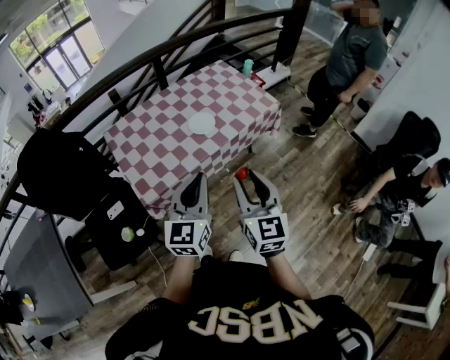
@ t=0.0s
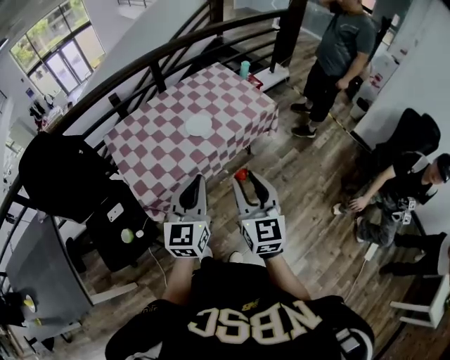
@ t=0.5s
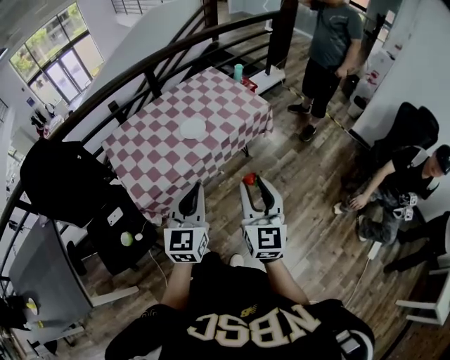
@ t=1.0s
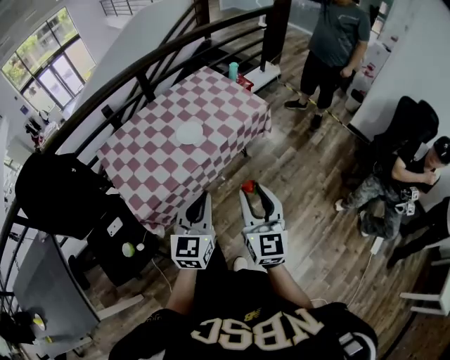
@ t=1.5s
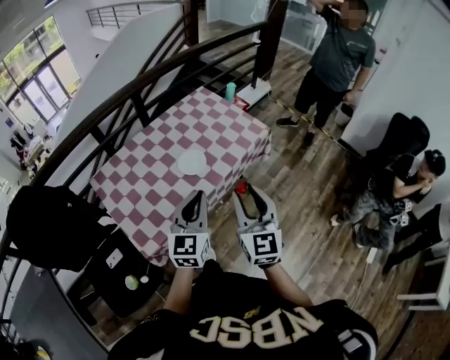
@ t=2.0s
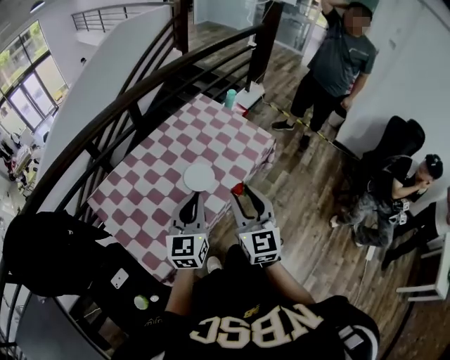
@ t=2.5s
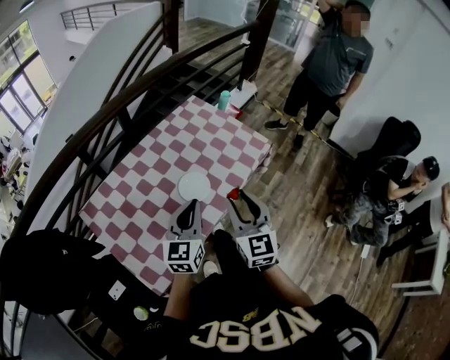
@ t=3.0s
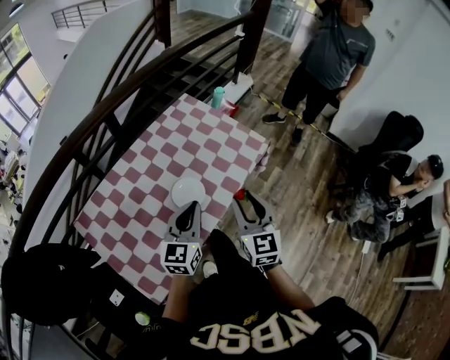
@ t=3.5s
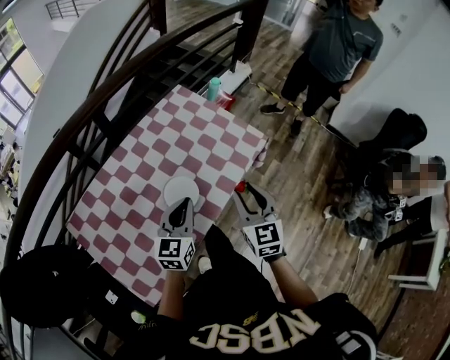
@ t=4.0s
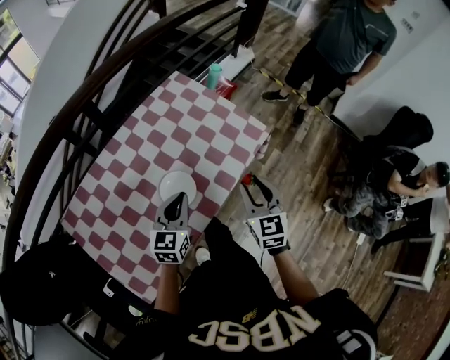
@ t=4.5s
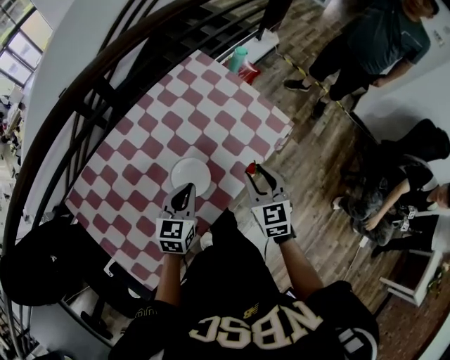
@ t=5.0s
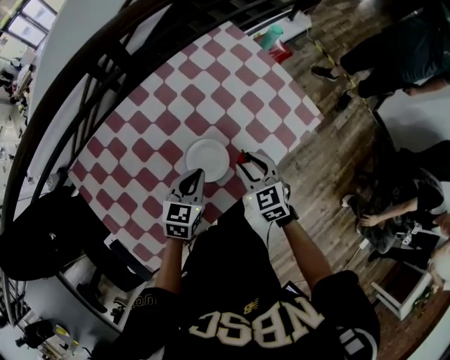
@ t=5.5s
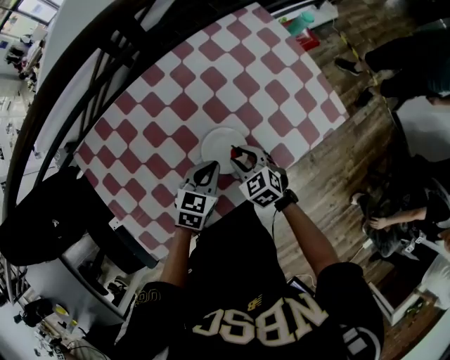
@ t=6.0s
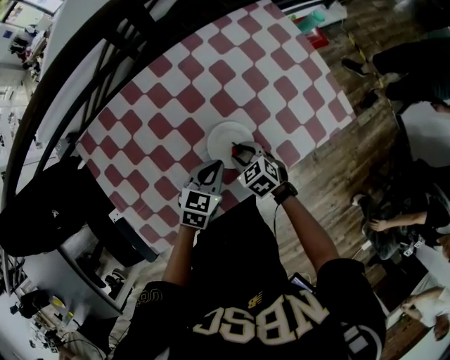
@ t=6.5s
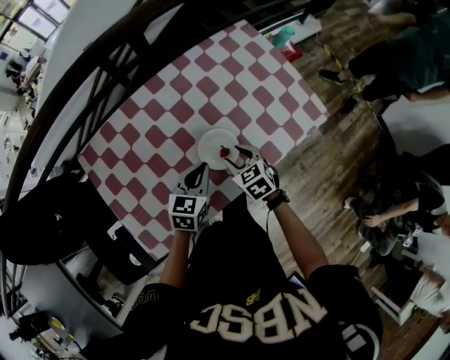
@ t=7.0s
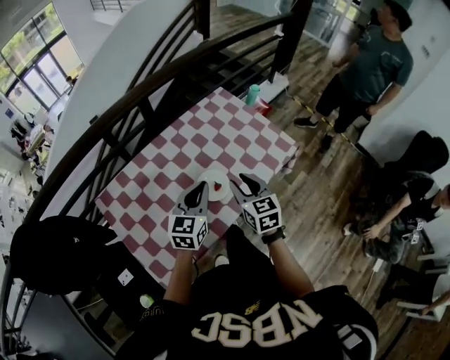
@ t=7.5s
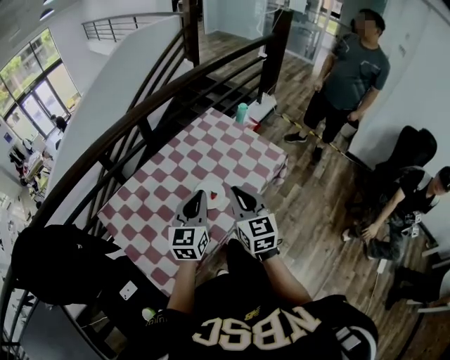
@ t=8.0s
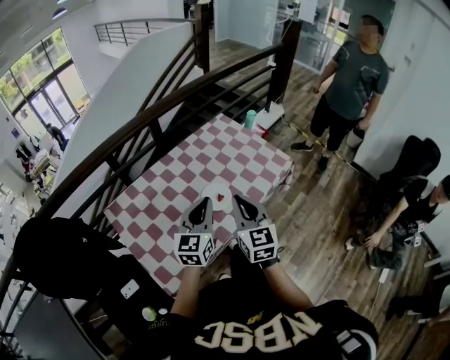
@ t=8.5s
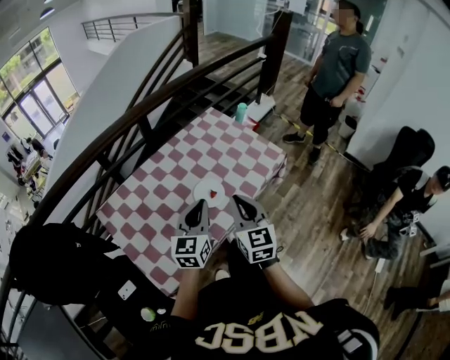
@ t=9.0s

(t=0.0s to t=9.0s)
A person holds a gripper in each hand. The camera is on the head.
t=0.0s - t=2.0s: The two grippers go some 15 cm forward.
t=2.0s - t=4.5s: The two grippers go about 30 cm forward and downward. The right gripper rotates some 20 degrees.
t=4.5s - t=7.0s: The left gripper shifts some 10 cm downward, while the right gripper is displaced downward by about 20 cm, and changes its angle by some 40 degrees.
t=7.0s - t=9.0s: The grippers both shift upward and backward by approximately 25 cm. The left gripper changes its angle by roughly 30 degrees. Meanwhile the right gripper tips its fingers upward by approximately 40 degrees, and closes.

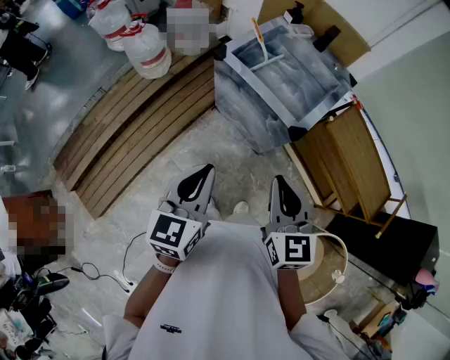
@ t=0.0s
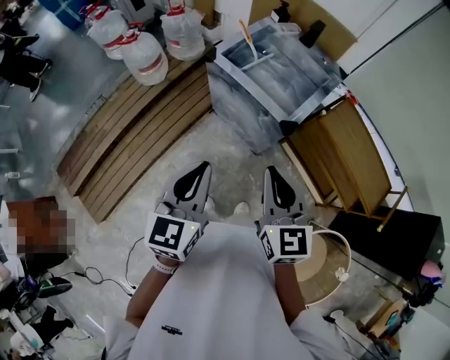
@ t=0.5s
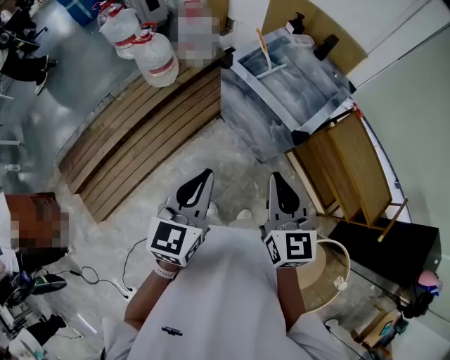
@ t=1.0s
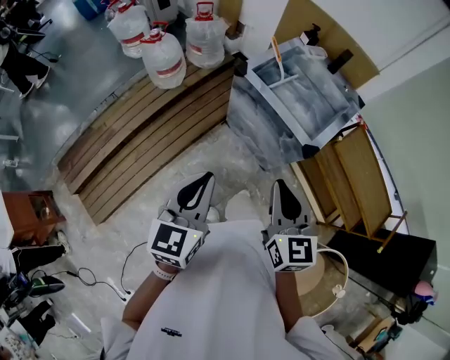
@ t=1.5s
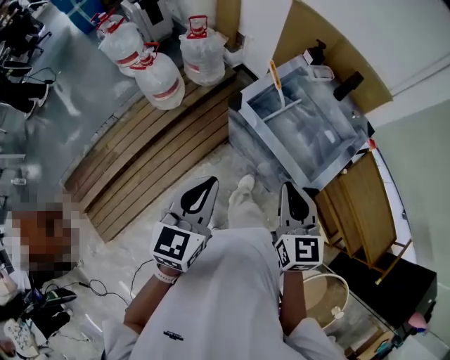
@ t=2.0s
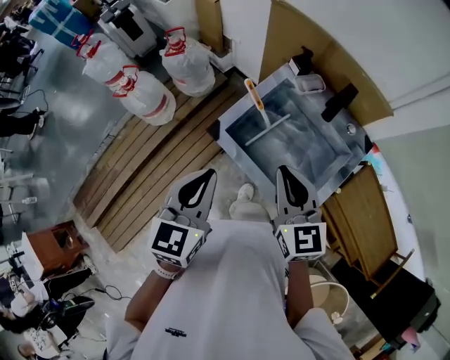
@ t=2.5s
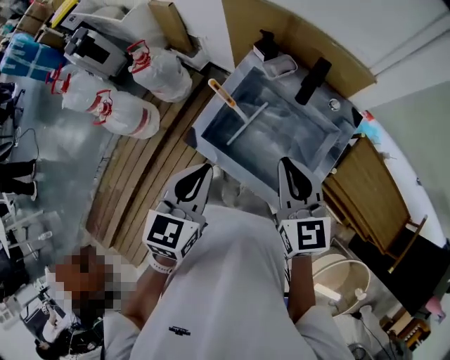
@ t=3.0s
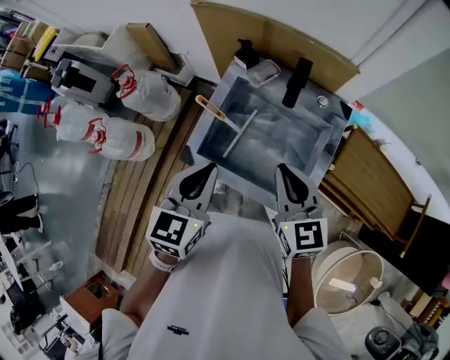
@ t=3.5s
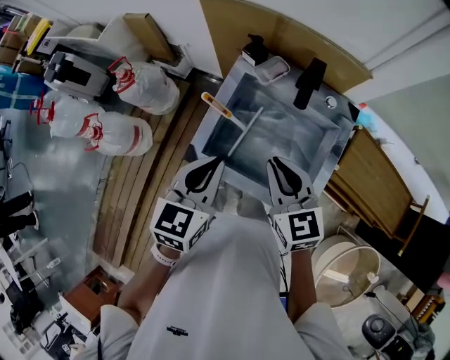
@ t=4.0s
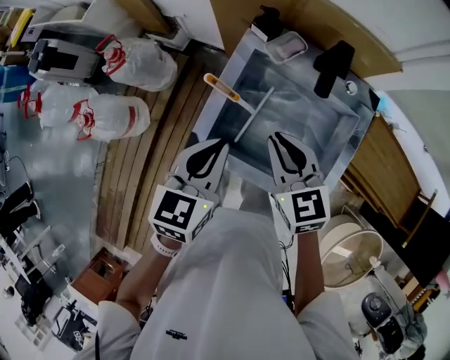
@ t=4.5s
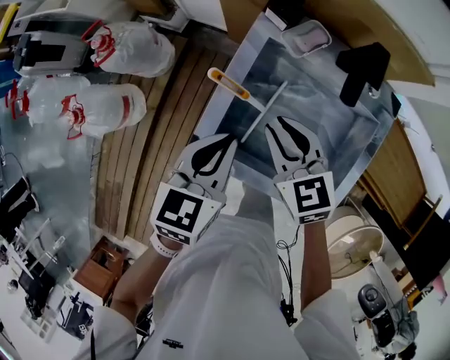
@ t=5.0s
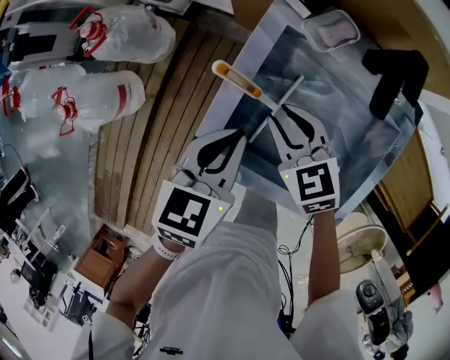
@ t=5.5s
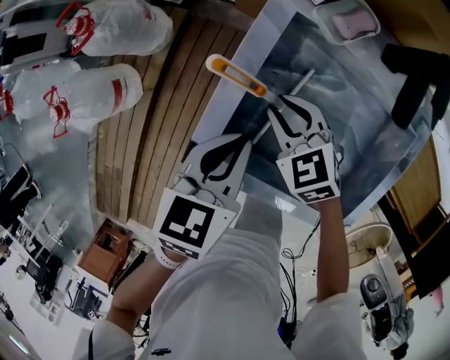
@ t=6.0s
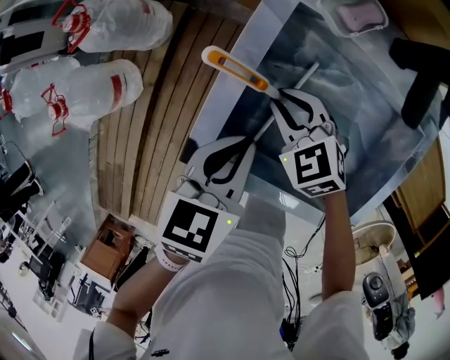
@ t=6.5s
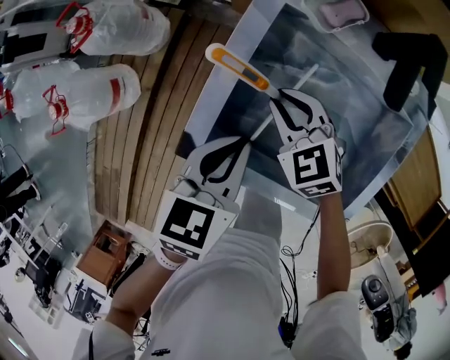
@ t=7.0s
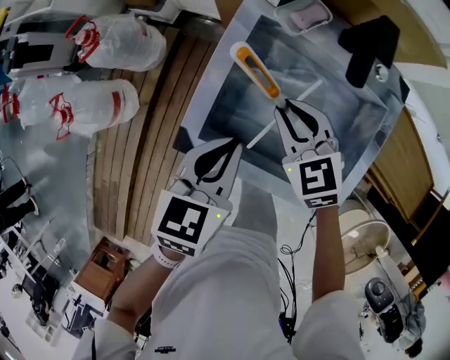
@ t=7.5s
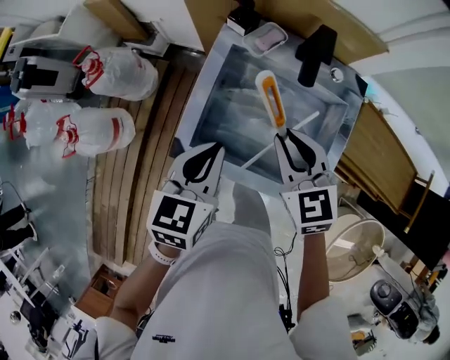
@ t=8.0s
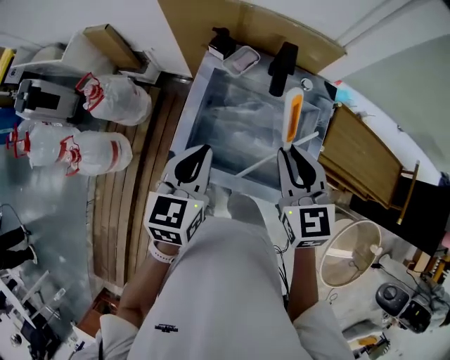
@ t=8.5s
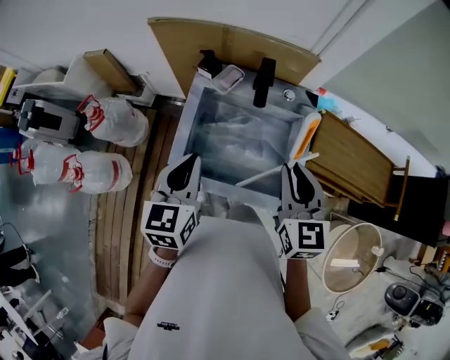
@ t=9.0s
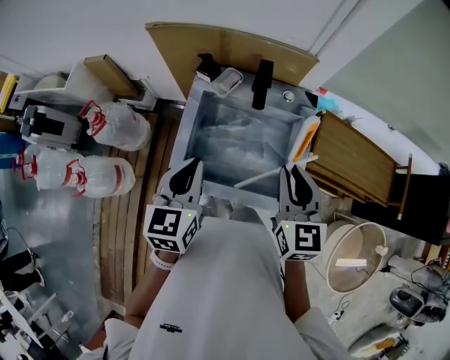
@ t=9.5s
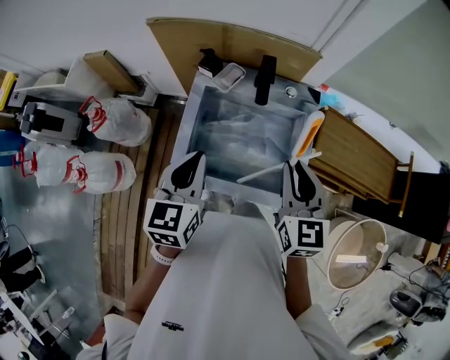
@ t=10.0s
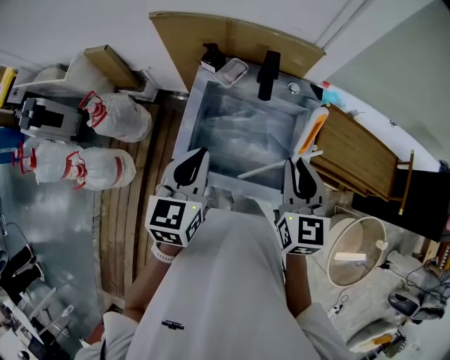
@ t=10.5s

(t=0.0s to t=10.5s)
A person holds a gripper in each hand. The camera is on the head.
t=0.0s - t=2.0s: Both grippers move forward, approximately 20 cm.
t=2.0s - t=4.0s: Both grippers travel together forward, about 30 cm. The left gripper changes its angle by about 30 degrees.
t=4.0s - t=6.5s: The right gripper travels downward and forward by approximately 30 cm, and swivels approximately 30 degrees. Meanwhile the left gripper travels downward by roughly 20 cm, and swivels roughly 20 degrees.
t=6.5s - t=8.5s: The left gripper travels upward by approximately 20 cm, and turns by approximately 20 degrees. Meanwhile the right gripper goes about 35 cm upward and to the right, and turns by roughly 40 degrees.
t=8.5s - t=10.5s: The right gripper moves about 5 cm.

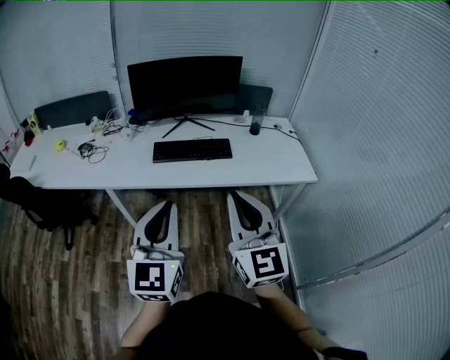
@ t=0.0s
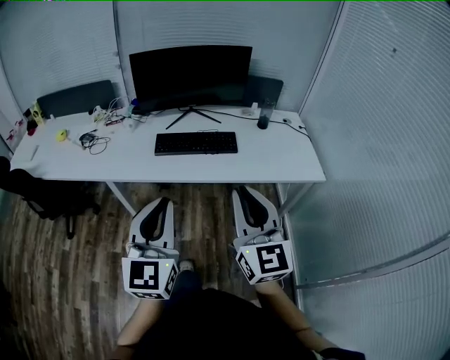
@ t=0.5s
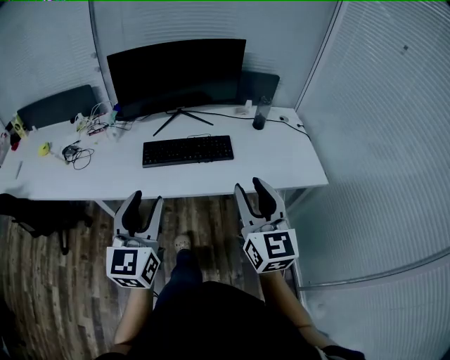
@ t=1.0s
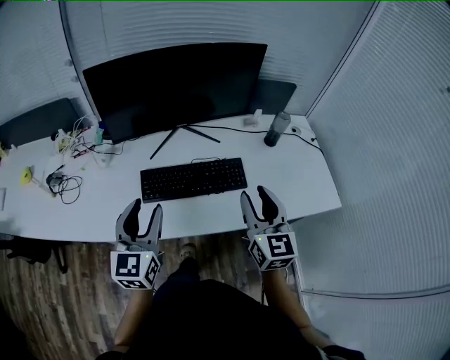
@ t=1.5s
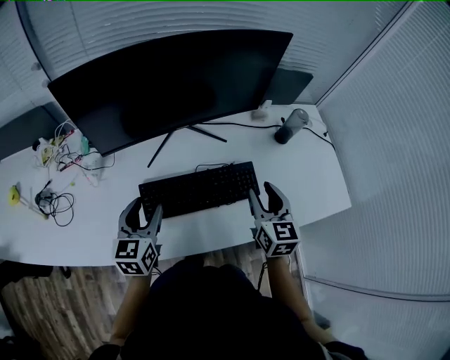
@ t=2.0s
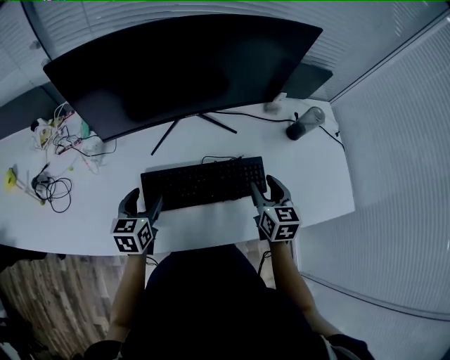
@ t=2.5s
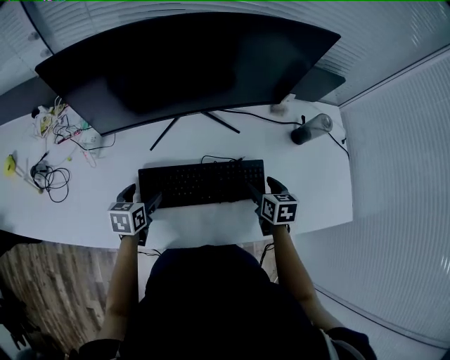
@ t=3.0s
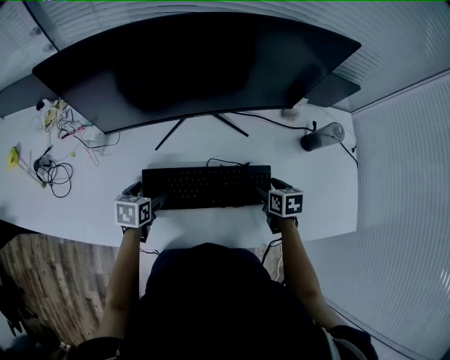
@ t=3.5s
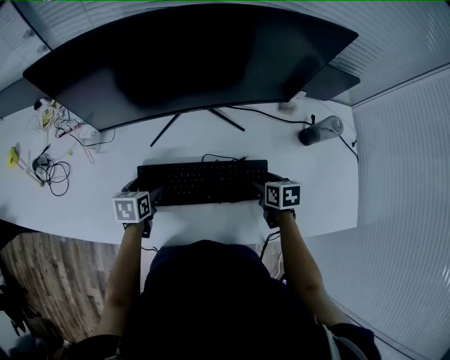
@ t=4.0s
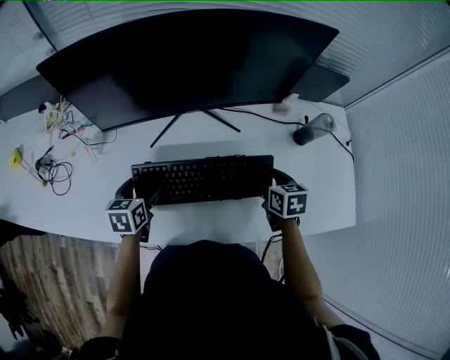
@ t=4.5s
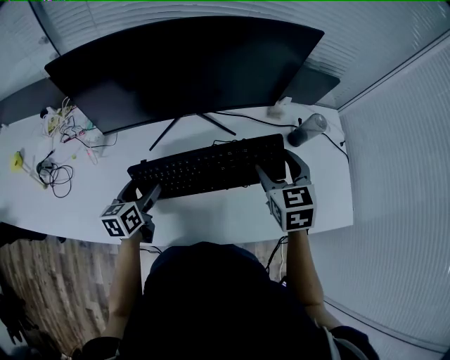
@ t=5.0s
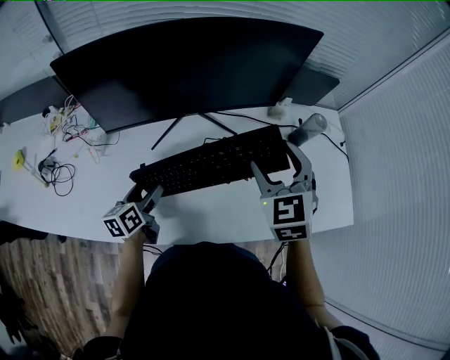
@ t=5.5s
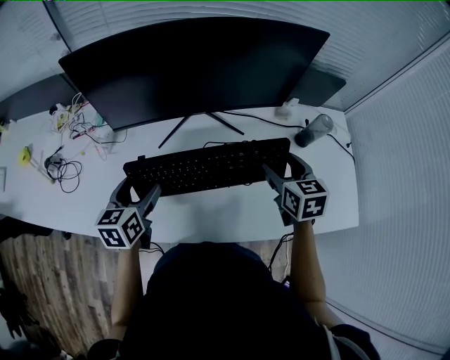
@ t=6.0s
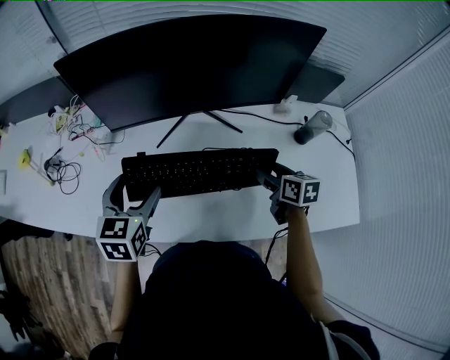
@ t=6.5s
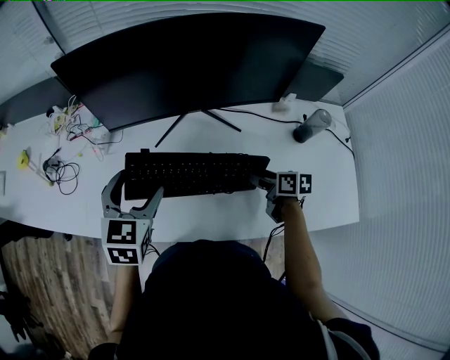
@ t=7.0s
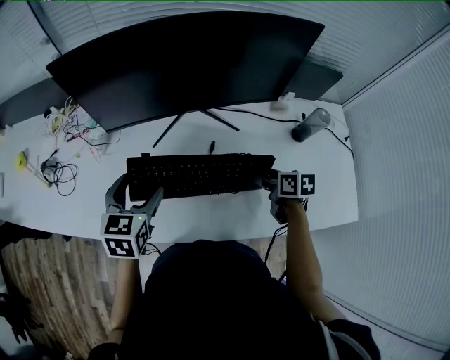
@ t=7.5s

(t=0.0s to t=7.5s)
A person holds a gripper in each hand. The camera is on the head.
t=0.0s - t=2.0s: The two grippers travel together, forward, roughly 50 cm. The grippers both shift downward by approximately 25 cm. The right gripper turns by about 30 degrees, and opens. The left gripper changes its angle by about 30 degrees, and opens up.
t=2.0s - t=4.0s: The left gripper moves downward, some 15 cm, tilts its fingers approximately 30 degrees downward, and opens up. Meanwhile the right gripper moves downward and forward, roughly 20 cm, angles its fingers downward, by some 40 degrees, and opens up.
t=4.0s - t=5.5s: The right gripper moves upward, approximately 30 cm, and turns by approximately 60 degrees; the left gripper heads upward, covering about 10 cm, and rotates about 30 degrees.
t=5.5s - t=7.5s: The left gripper is displaced upward by about 10 cm, and rotates roughly 40 degrees; the right gripper goes roughly 20 cm downward, and rotates around the line of its fingers by some 50 degrees, clockwise from behind.
